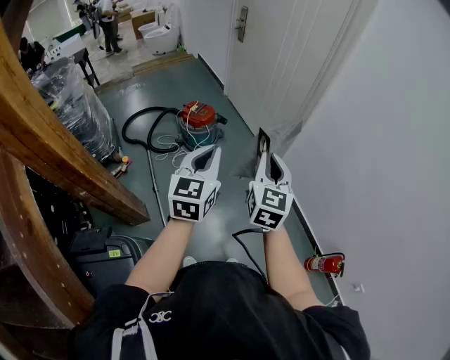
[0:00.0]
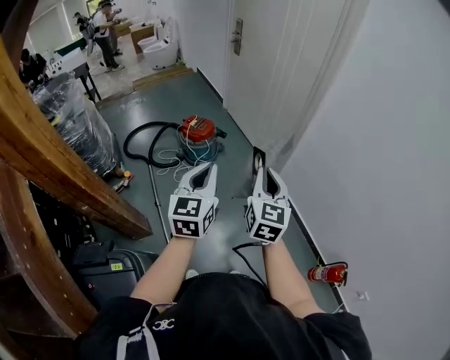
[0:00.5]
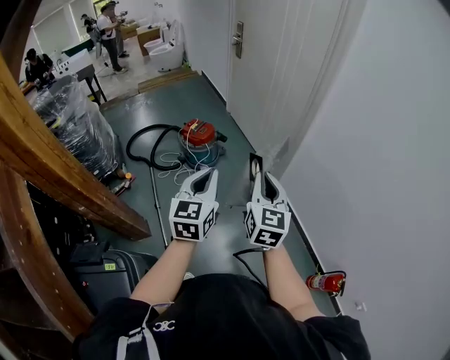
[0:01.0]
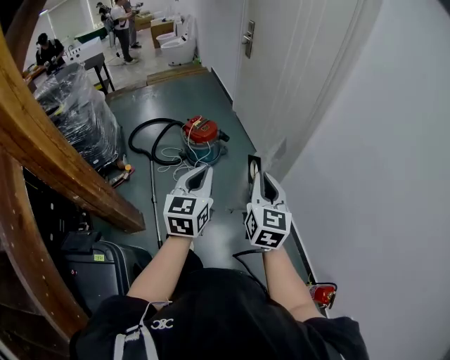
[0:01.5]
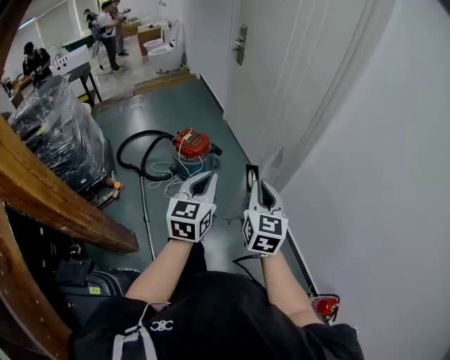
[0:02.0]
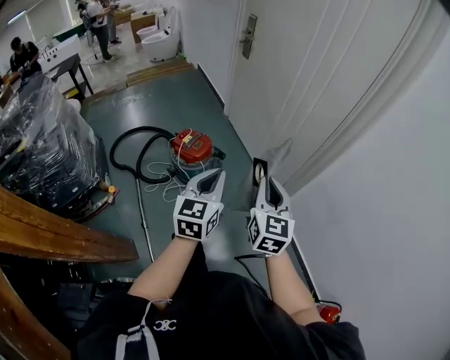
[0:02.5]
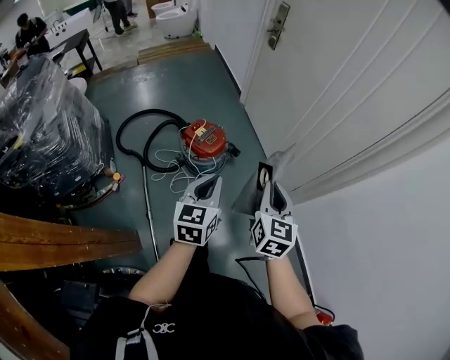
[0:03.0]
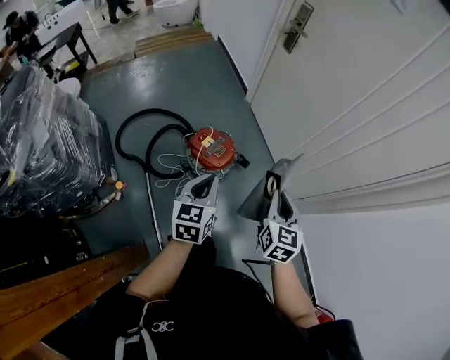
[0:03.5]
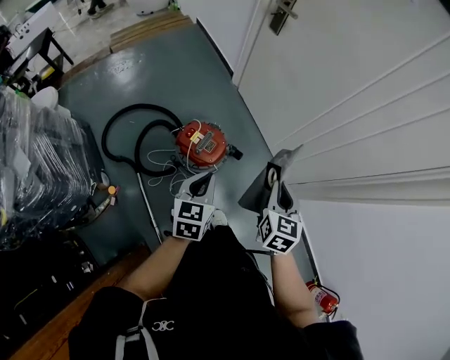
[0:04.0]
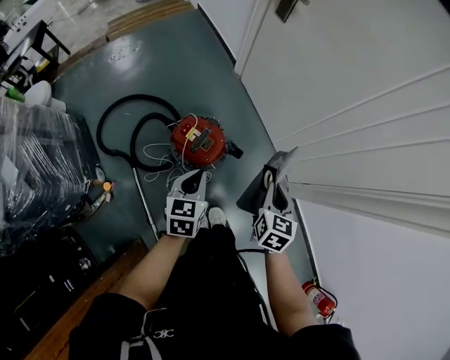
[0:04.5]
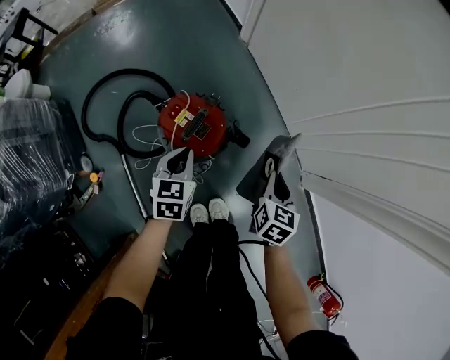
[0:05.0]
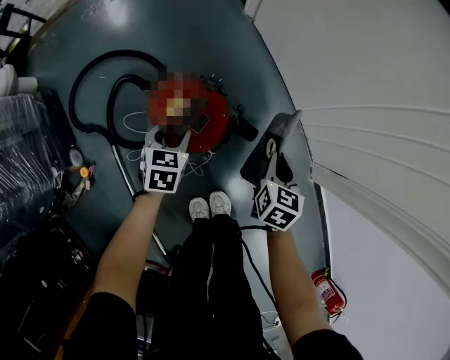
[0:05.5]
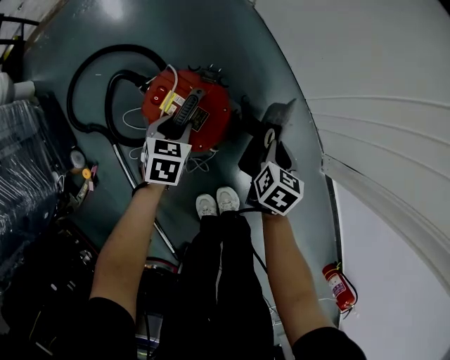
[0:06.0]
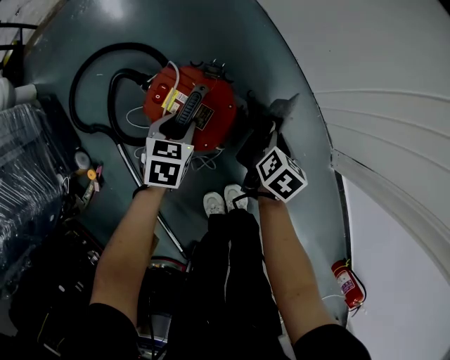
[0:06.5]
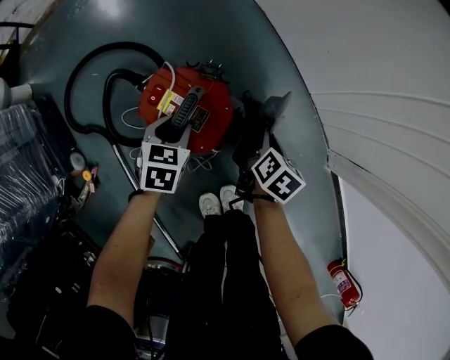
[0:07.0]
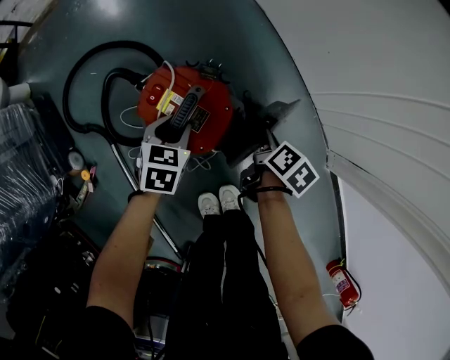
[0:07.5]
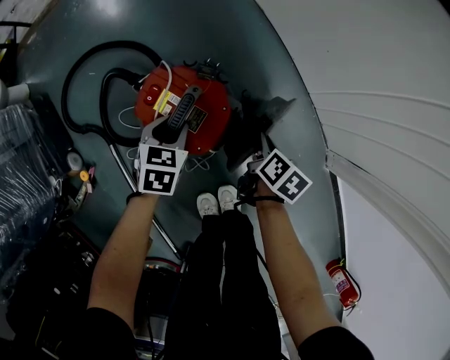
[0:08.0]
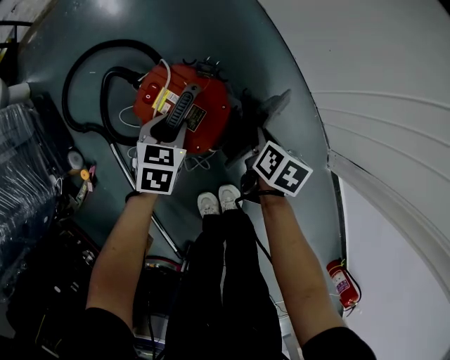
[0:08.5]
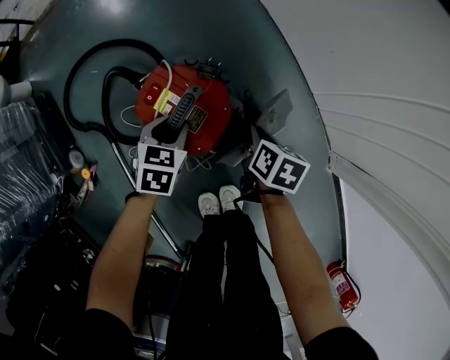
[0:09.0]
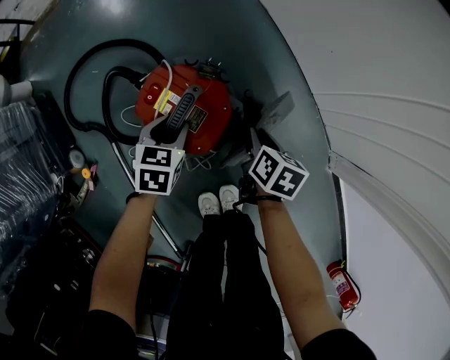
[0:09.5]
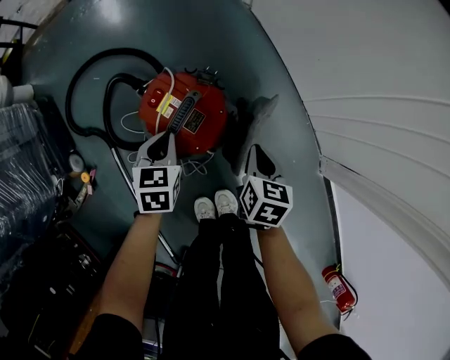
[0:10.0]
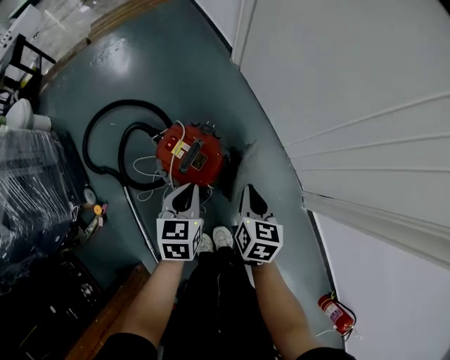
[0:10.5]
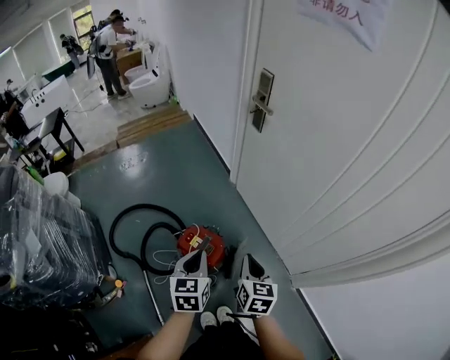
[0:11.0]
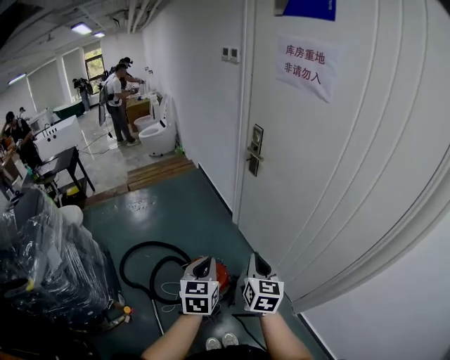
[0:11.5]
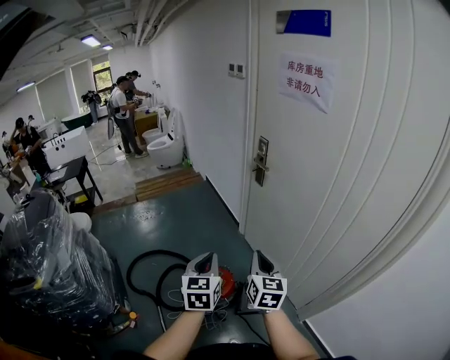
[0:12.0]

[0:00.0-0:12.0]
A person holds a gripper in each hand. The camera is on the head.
0:00.0 to 0:02.0: The grippers both shift forward and downward by about 15 cm.
0:02.0 to 0:04.0: Both grippers are carried forward and to the left, some 40 cm. The right gripper swivels about 20 degrees. The left gripper travels downward by roughly 15 cm, and rotates some 20 degrees.
0:04.0 to 0:06.0: The right gripper shifts some 50 cm downward, and changes its angle by some 30 degrees, while the left gripper is displaced downward and forward by approximately 50 cm, turns by about 30 degrees, and opens.
0:06.0 to 0:08.0: The right gripper shifts by approximately 5 cm, and turns by some 30 degrees.
0:08.0 to 0:10.0: The right gripper shifts some 10 cm upward, and rotates about 30 degrees, while the left gripper travels upward by roughly 5 cm, and closes its fingers.
0:10.0 to 0:12.0: The grippers both shift upward by some 60 cm. The right gripper tilts its fingers about 40 degrees upward. Meanwhile the left gripper angles its fingers upward, by roughly 40 degrees.

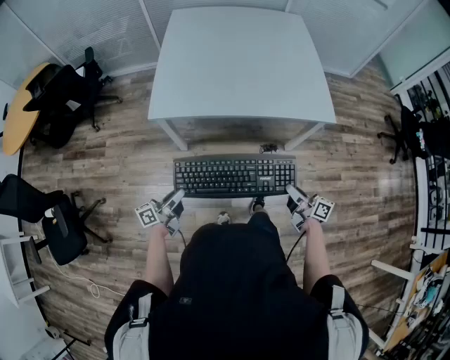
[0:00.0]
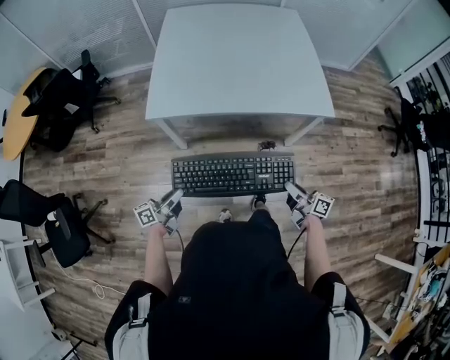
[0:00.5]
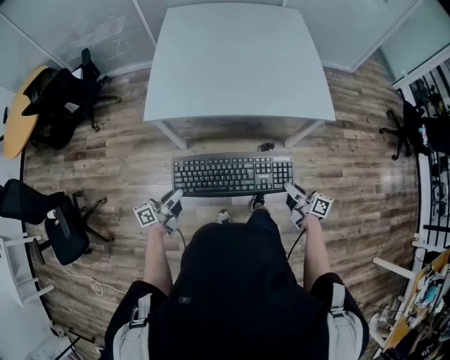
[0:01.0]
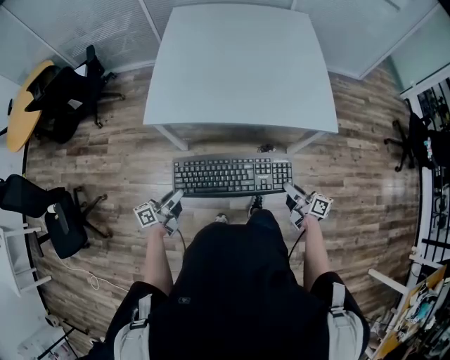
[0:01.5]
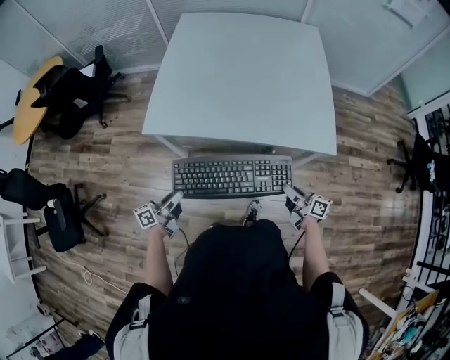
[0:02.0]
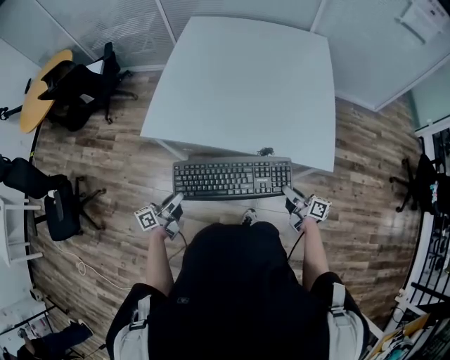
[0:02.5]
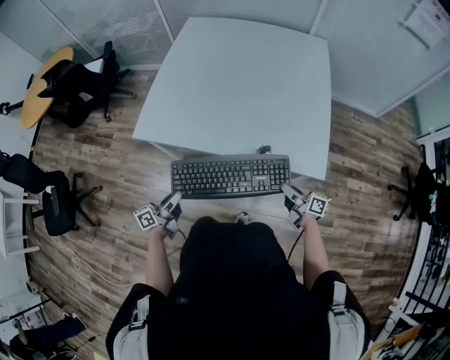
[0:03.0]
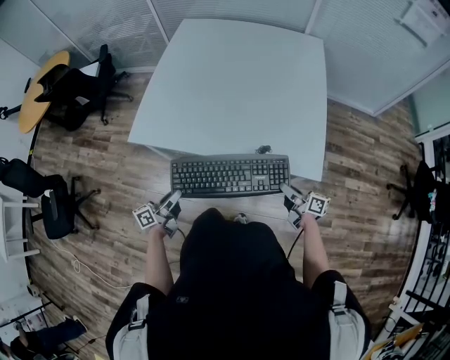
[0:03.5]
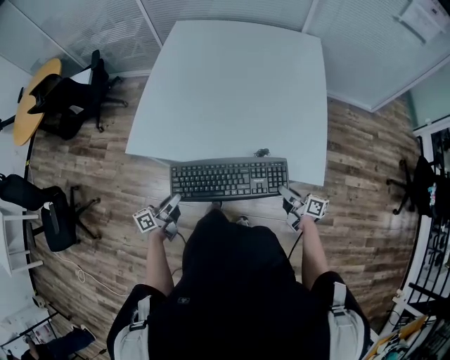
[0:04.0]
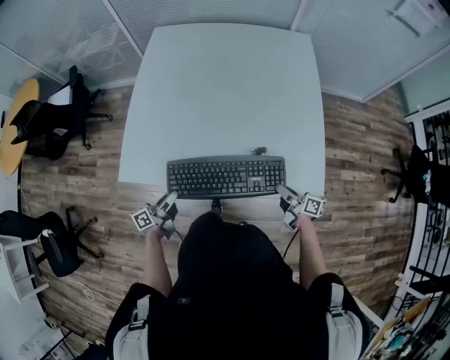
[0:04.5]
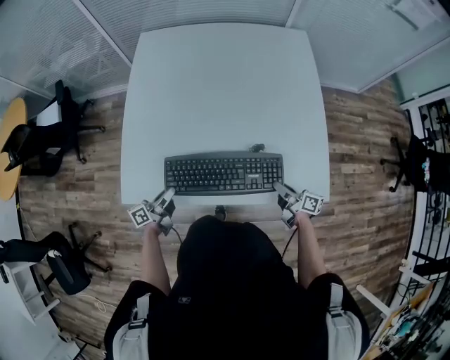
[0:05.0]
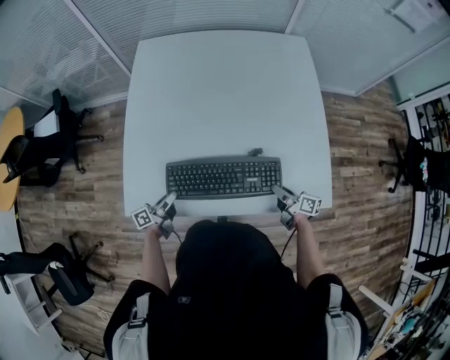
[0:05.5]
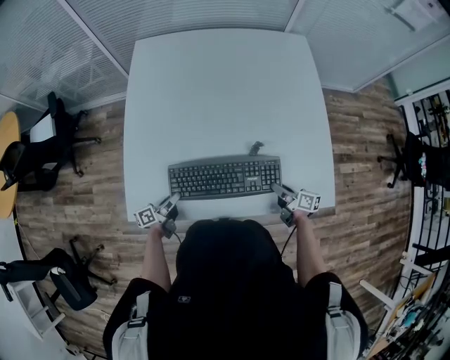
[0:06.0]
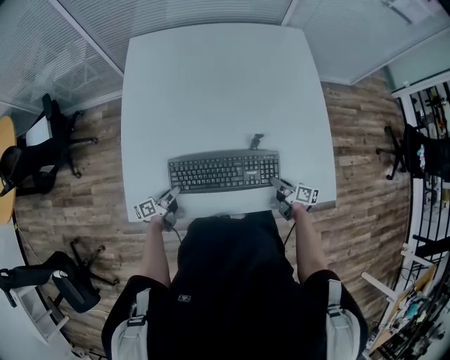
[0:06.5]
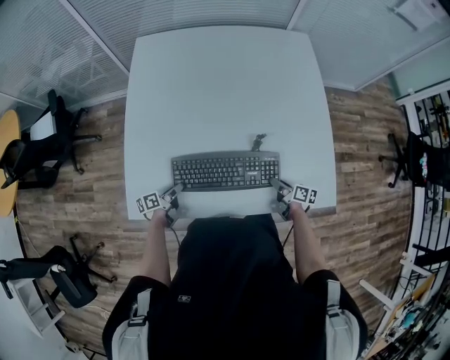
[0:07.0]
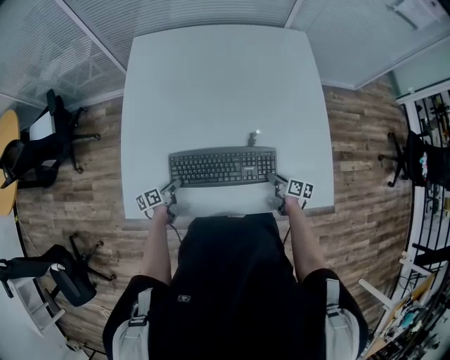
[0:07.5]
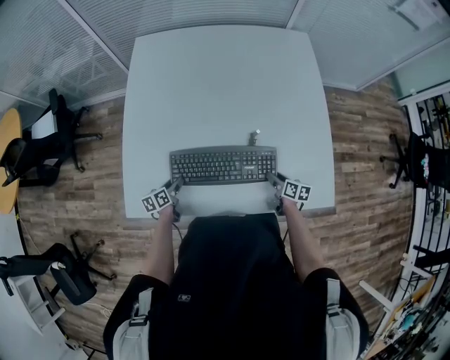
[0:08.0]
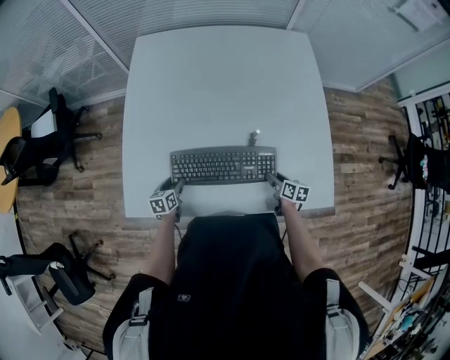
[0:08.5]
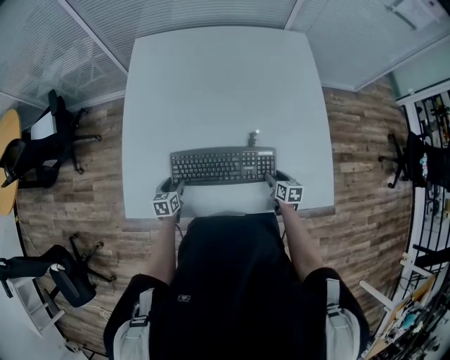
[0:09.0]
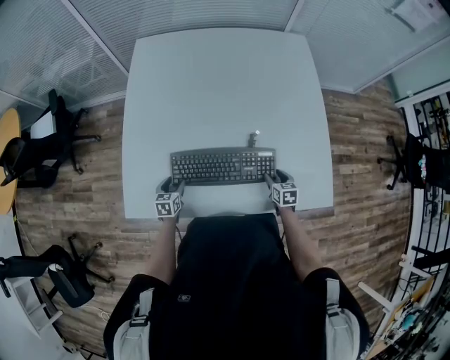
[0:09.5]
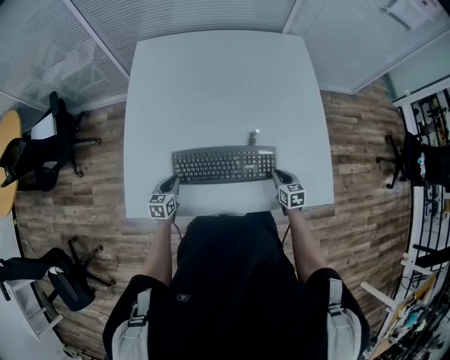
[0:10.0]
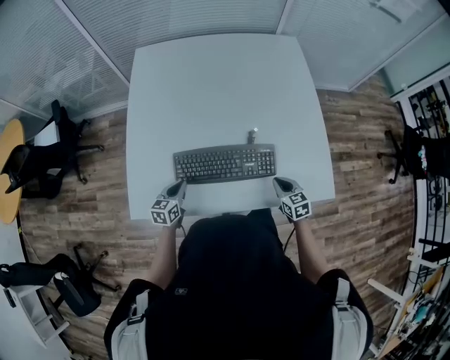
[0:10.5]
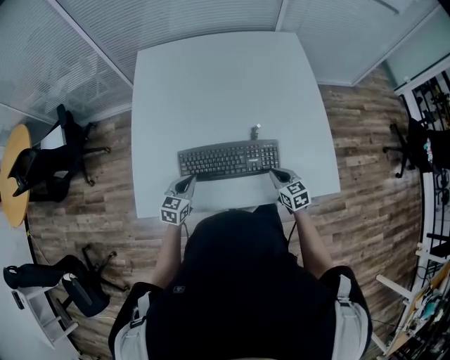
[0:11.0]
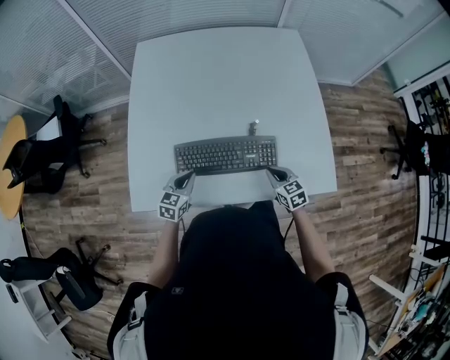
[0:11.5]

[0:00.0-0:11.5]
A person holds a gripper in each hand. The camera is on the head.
0:00.0 to 0:02.0: The two grippers go approximately 20 cm forward and to the right.
0:02.0 to 0:04.0: Both grippers move forward and to the right, roughly 20 cm.
0:04.0 to 0:06.0: The grippers both shift forward by roughly 30 cm. The left gripper rotates about 20 degrees.
0:06.0 to 0:07.5: The right gripper heads downward, covering approximately 5 cm. Meanwhile the left gripper moves some 5 cm.
0:07.5 to 0:09.5: The left gripper rolls clockwise, seen from behind, by roughly 40 degrees; the right gripper swivels approximately 40 degrees.
0:09.5 to 0:11.5: The right gripper is displaced upward, backward and to the left by roughly 15 cm, changes its angle by about 20 degrees, and closes; the left gripper shifts approximately 15 cm upward and to the right, rotates about 30 degrees, and closes its fingers.

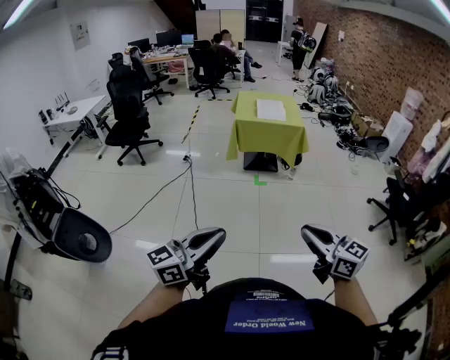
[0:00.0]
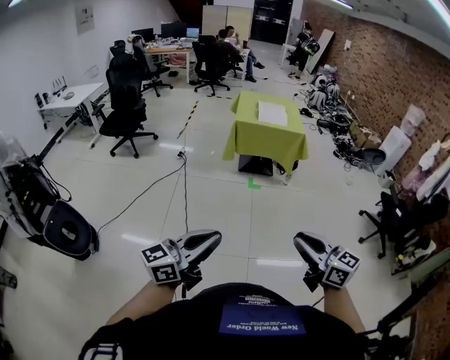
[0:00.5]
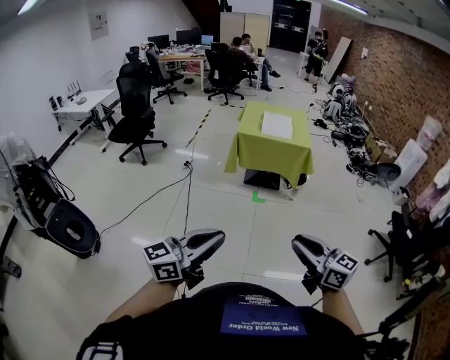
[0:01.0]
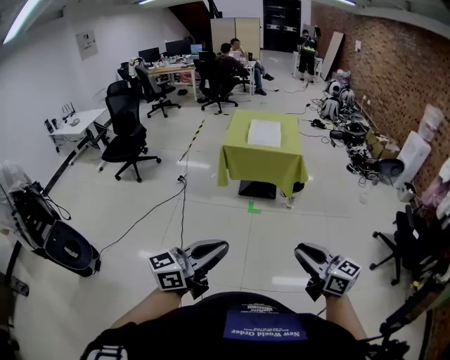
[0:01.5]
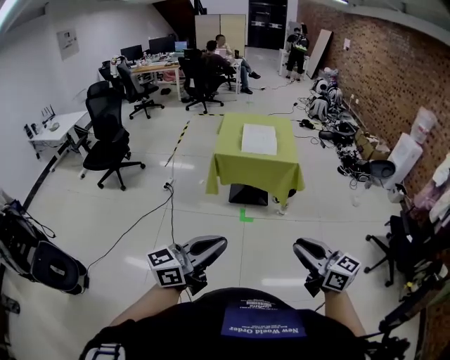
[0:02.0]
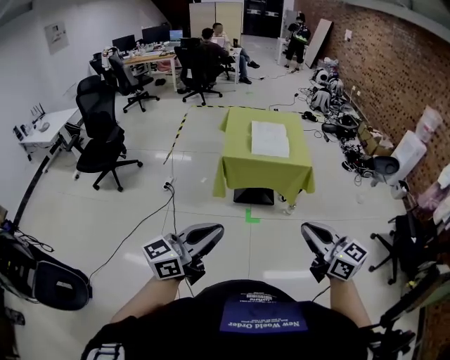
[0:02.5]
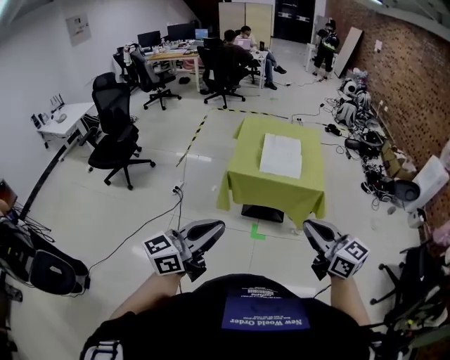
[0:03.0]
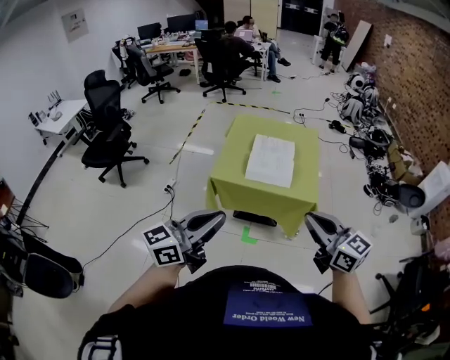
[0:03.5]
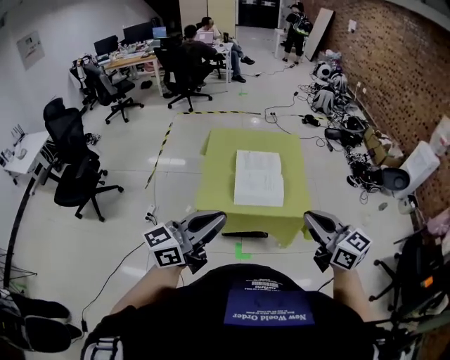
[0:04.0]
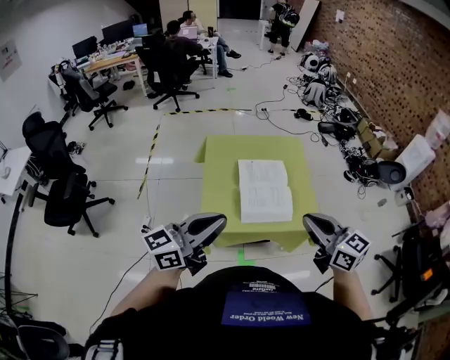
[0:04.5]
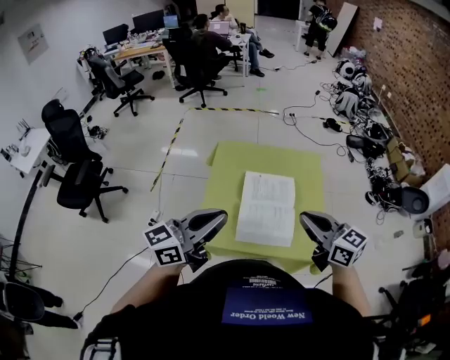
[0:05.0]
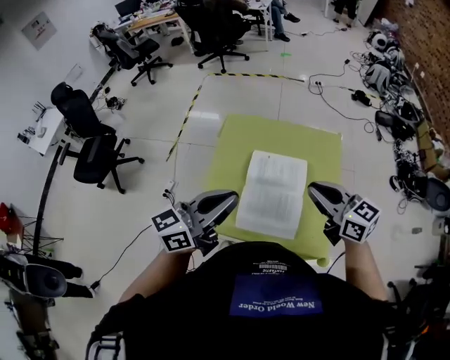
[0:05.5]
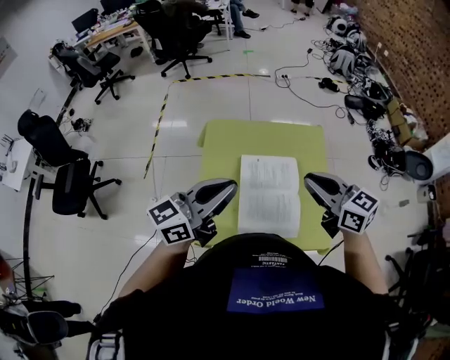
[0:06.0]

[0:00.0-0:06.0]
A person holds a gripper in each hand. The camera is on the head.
0:00.0 to 0:02.0: The grippers both shift forward by approximately 35 cm.
0:02.0 to 0:04.0: The pair of grippers is taken forward, approximately 60 cm.
0:04.0 to 0:06.0: The grippers both shift forward by roughly 35 cm.
